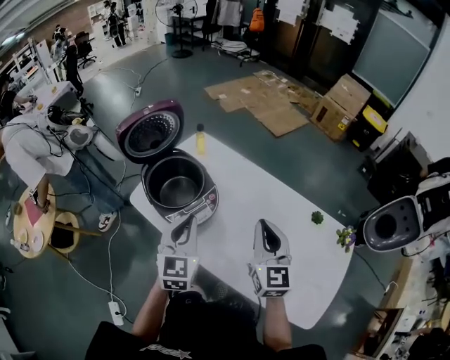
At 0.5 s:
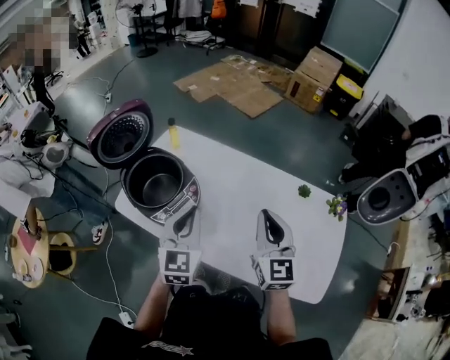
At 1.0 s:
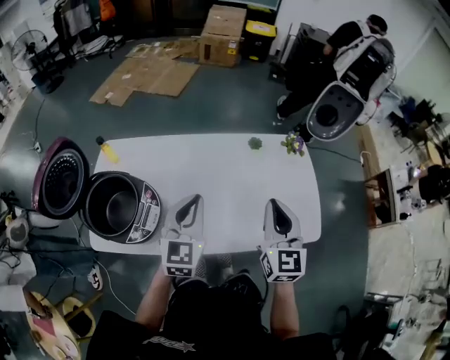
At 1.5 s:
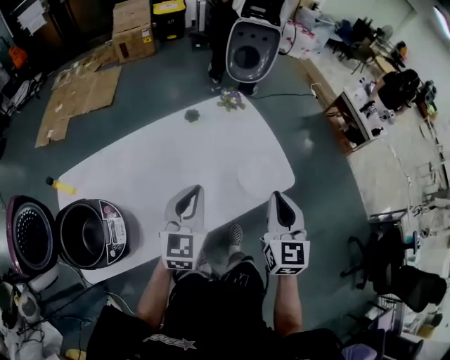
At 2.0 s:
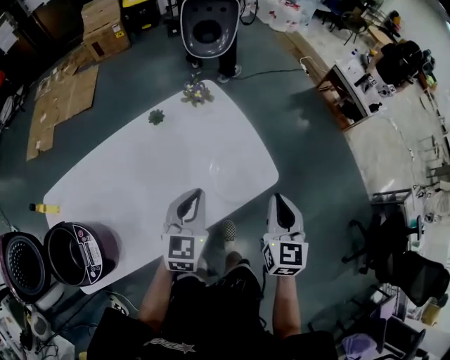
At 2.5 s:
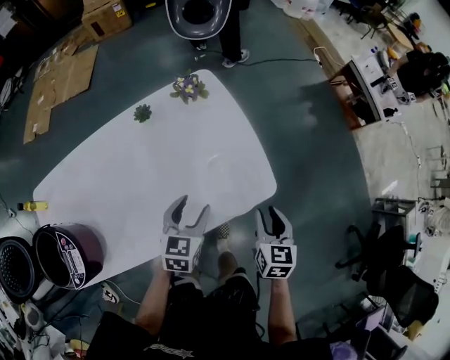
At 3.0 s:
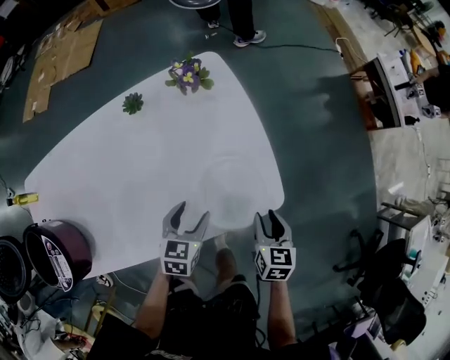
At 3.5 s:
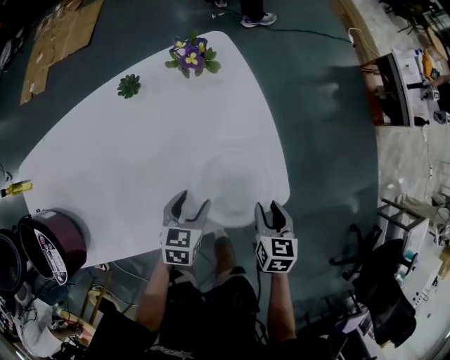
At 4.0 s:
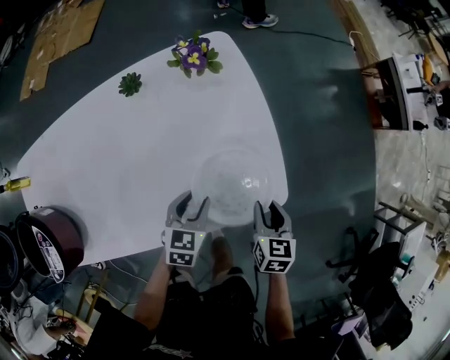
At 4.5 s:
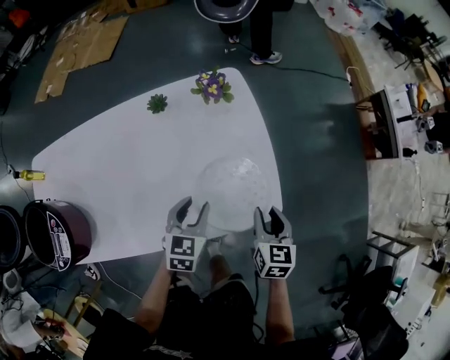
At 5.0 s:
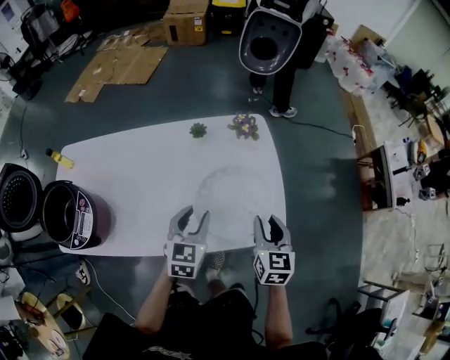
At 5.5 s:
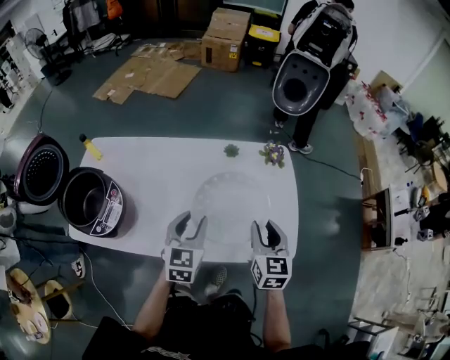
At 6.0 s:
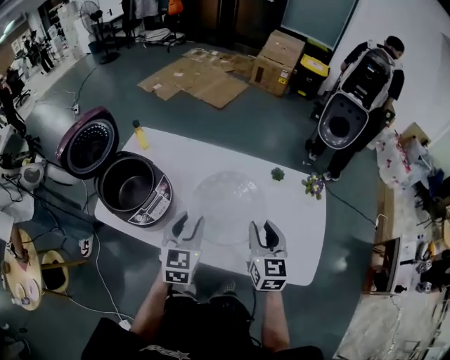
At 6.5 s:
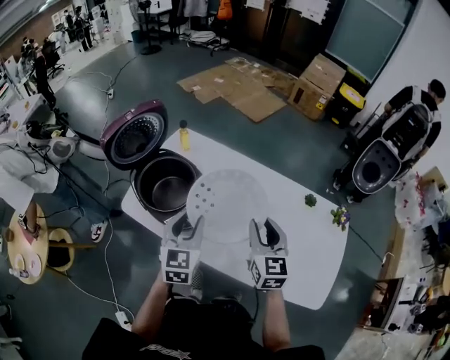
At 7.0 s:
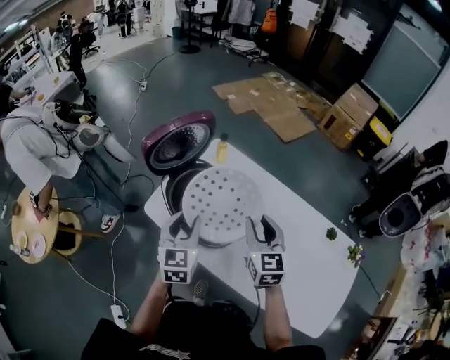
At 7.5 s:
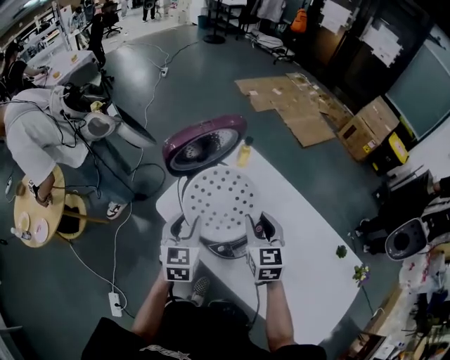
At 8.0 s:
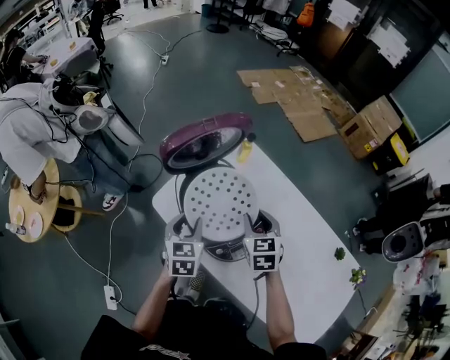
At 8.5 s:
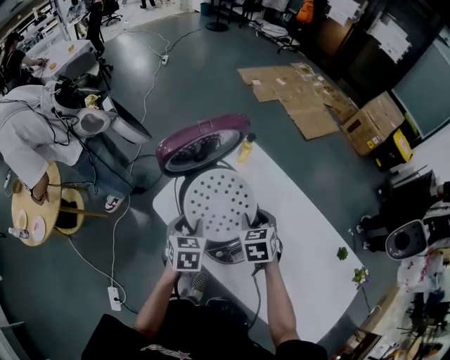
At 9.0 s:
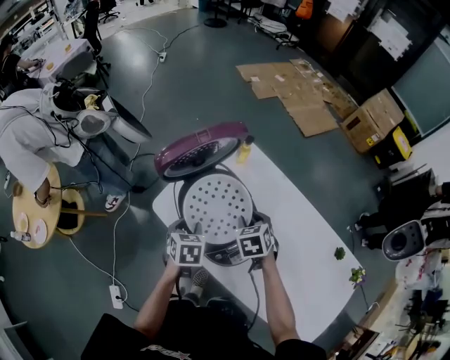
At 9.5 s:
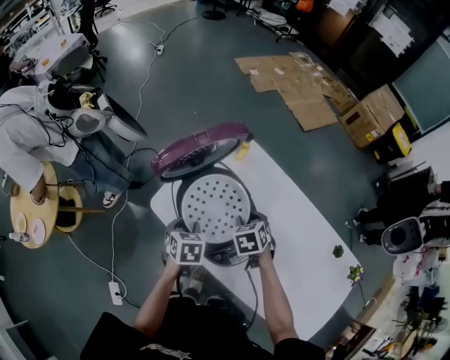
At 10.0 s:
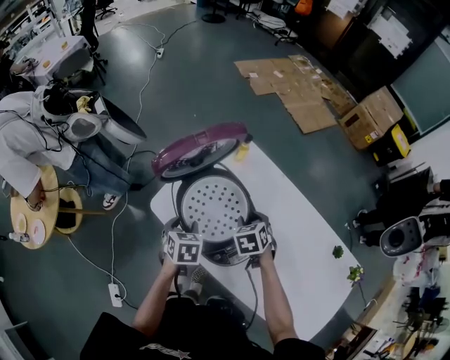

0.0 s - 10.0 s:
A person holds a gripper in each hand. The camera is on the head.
0.0 s - 2.0 s: Both grippers are carried approximately 40 cm. The left gripper turns by some 70 degrees, while the right gripper swivels some 70 degrees.
2.0 s - 4.0 s: Both grippers travel together downward, approximately 25 cm. The right gripper turns by roughly 30 degrees, and opens its fingers; the left gripper turns by some 30 degrees, and opens.
4.0 s - 6.0 s: The left gripper changes place by some 50 cm, and swivels roughly 50 degrees. Meanwhile the right gripper shifts by some 50 cm, and changes its angle by approximately 50 degrees.
6.0 s - 8.0 s: The right gripper ends up approximately 40 cm from where it was, and changes its angle by some 40 degrees; the left gripper shifts by approximately 35 cm, and rotates roughly 40 degrees.
8.0 s - 10.0 s: The right gripper travels downward by about 5 cm, and swivels roughly 20 degrees. The left gripper rotates roughly 20 degrees.

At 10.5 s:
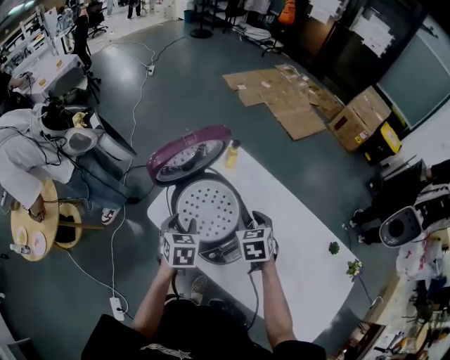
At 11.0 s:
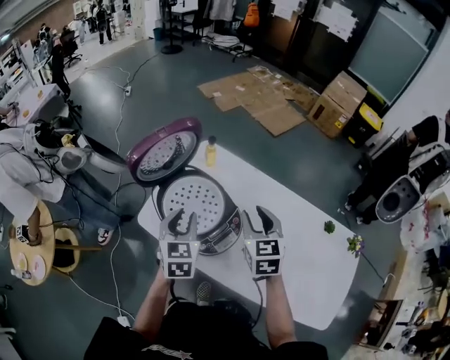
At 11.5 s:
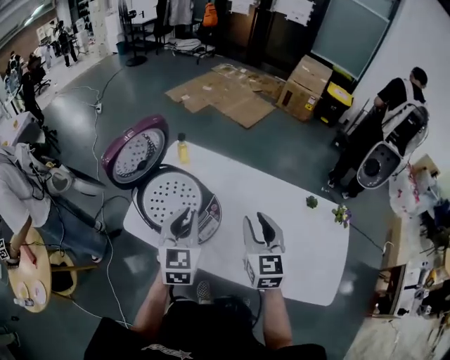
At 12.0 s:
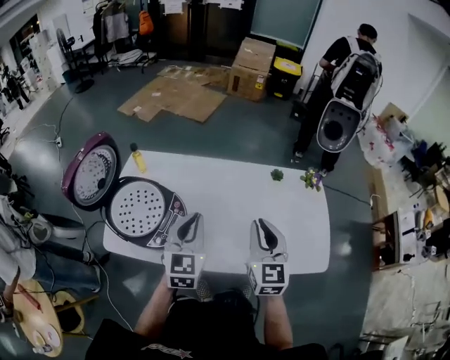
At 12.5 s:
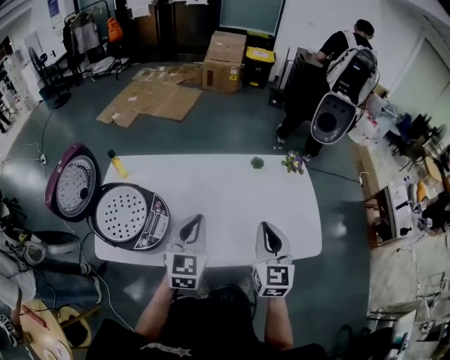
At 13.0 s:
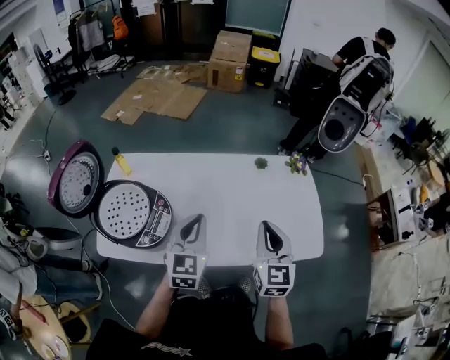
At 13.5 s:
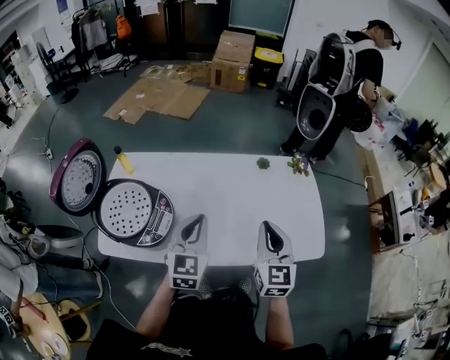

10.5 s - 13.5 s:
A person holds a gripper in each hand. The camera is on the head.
10.5 s - 12.0 s: The right gripper ends up about 35 cm from where it was, tilts its fingers about 40 degrees upward, and closes its fingers. The left gripper shifts by approximately 30 cm, tips its fingers upward by approximately 30 degrees, and closes.
12.0 s - 13.5 s: Both grippers travel together to the right, roughly 5 cm.

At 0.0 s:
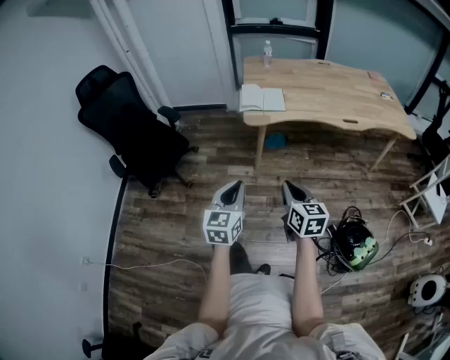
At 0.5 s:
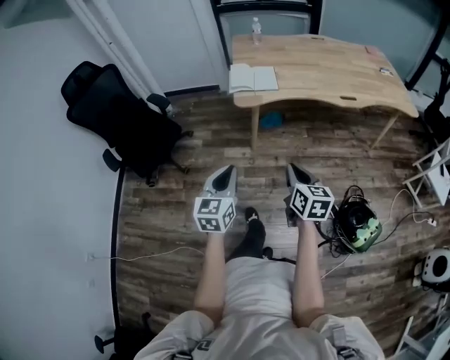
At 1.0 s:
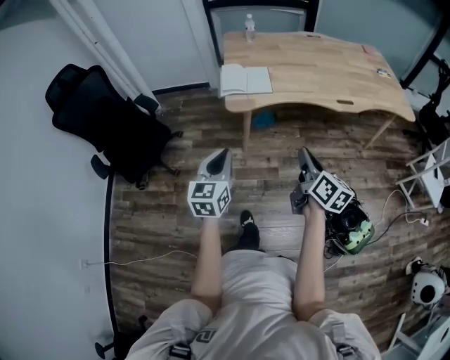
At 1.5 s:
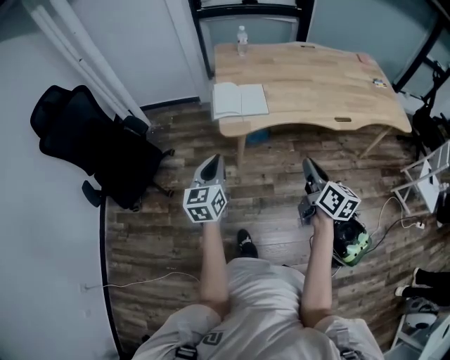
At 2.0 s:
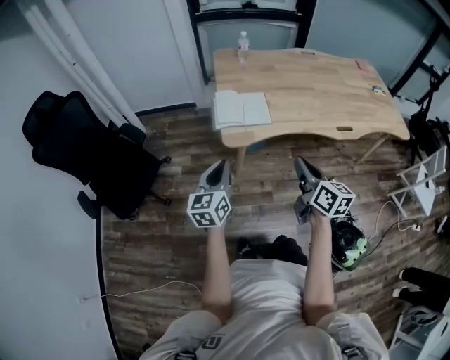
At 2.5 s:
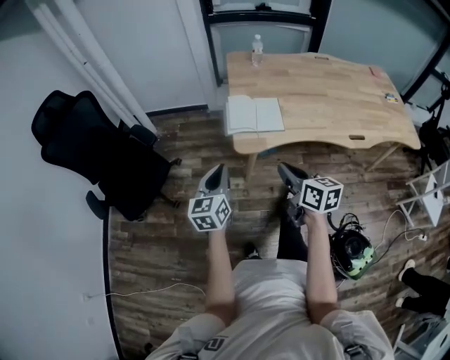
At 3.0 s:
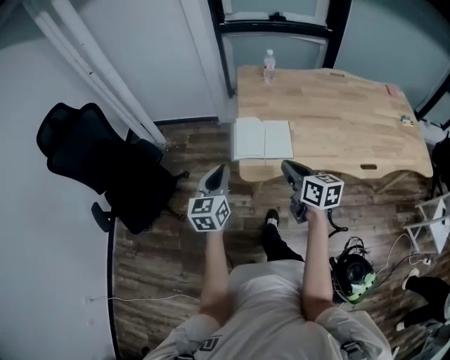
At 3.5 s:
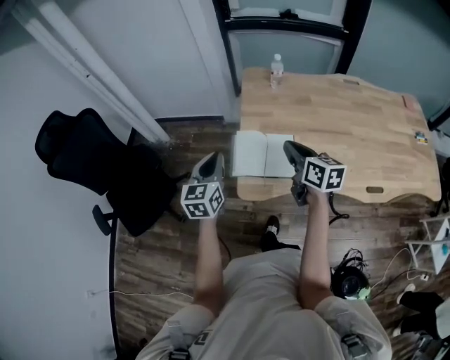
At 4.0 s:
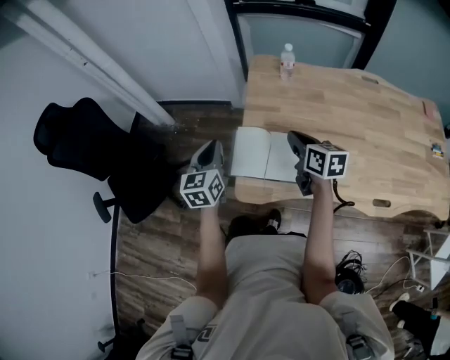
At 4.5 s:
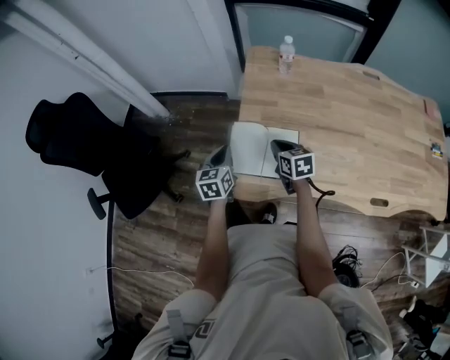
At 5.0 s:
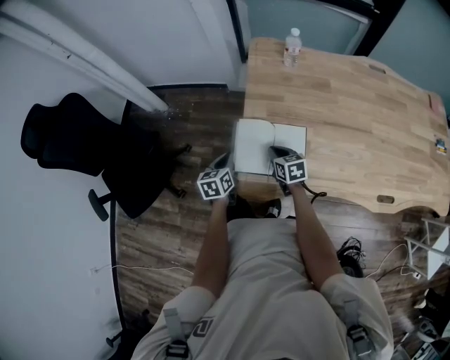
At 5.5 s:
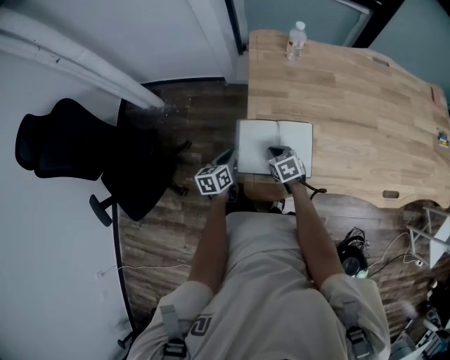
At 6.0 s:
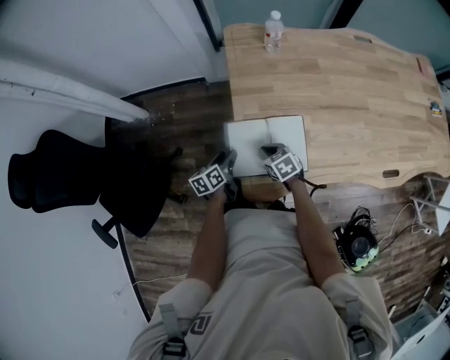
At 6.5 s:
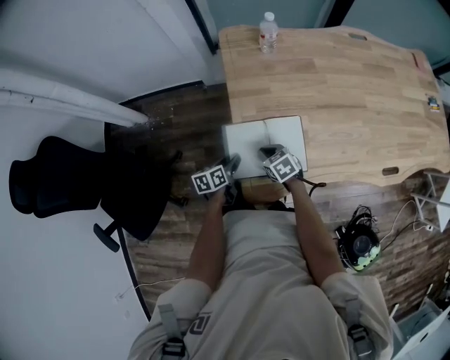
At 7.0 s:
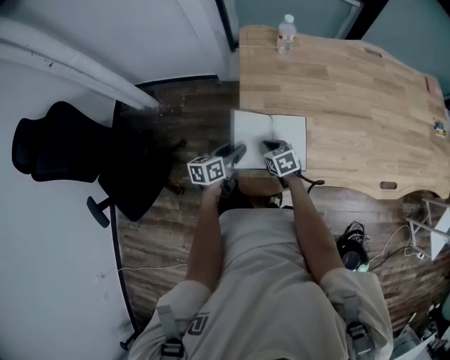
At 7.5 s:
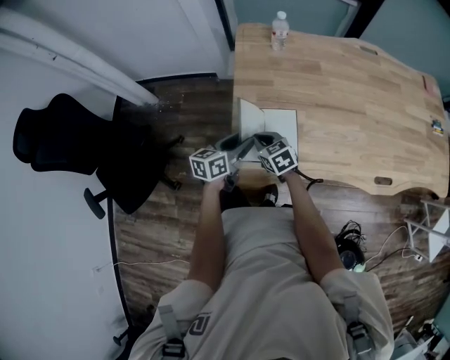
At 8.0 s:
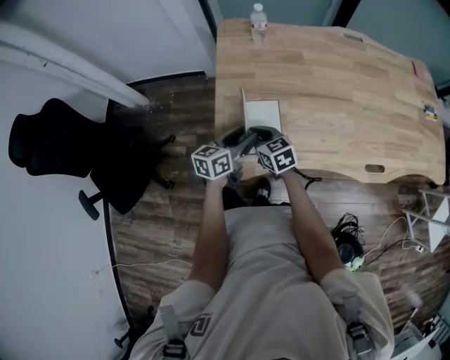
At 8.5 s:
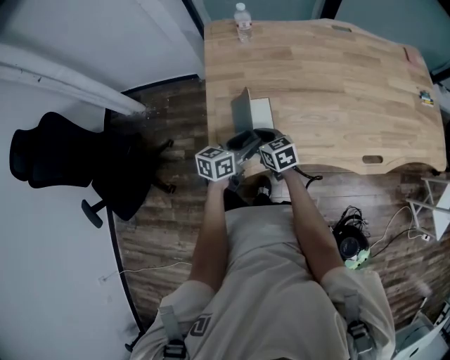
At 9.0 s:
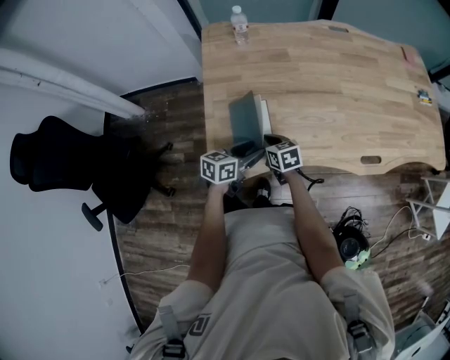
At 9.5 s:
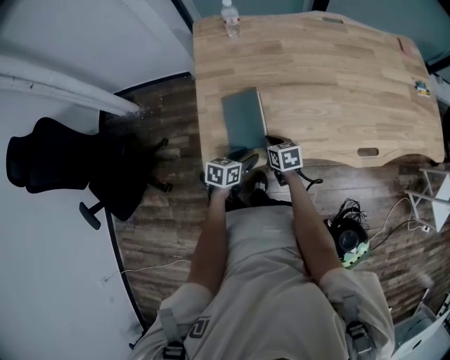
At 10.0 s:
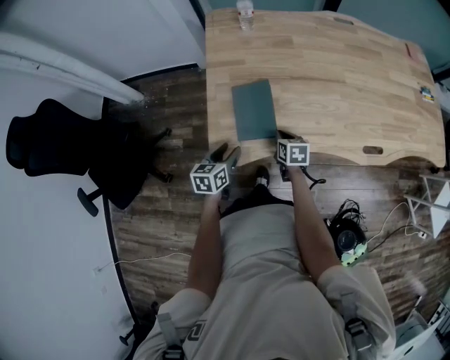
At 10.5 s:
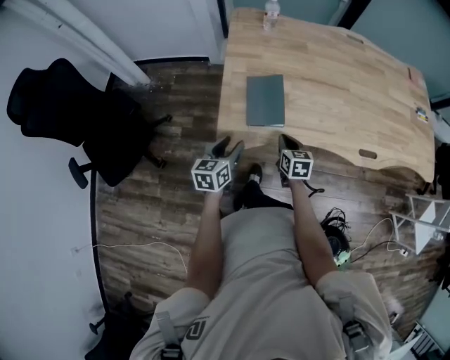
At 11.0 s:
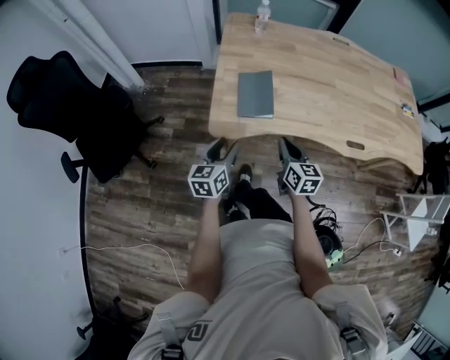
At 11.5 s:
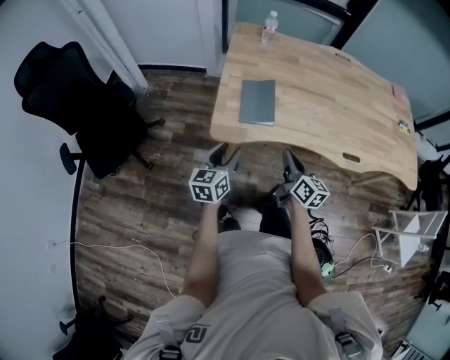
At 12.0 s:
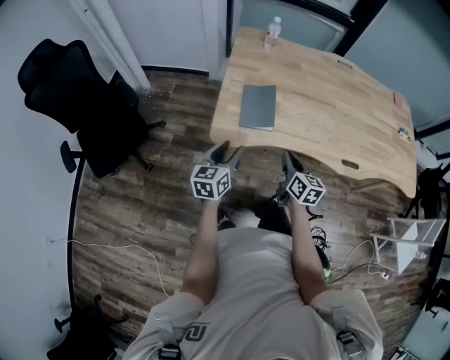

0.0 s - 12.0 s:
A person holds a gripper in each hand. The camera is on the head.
0.0 s - 2.0 s: Both grippers move forward, approximately 30 cm.
2.0 s - 4.0 s: Both grippers move forward, about 40 cm. The right gripper changes its angle by roughly 30 degrees. Meanwhile the left gripper swivels roughly 20 degrees.
4.0 s - 6.0 s: The left gripper goes about 30 cm downward, swivels some 40 degrees, and opens its fingers. Meanwhile the right gripper is displaced downward and to the left by roughly 30 cm, and swivels some 30 degrees.
6.0 s - 8.0 s: The left gripper shifts approximately 25 cm to the right and upward, and rotates some 30 degrees. The right gripper travels upward and to the right by roughly 10 cm, and rotates approximately 20 degrees.
8.0 s - 10.0 s: The right gripper travels to the right and downward by approximately 15 cm, and changes its angle by some 30 degrees. Meanwhile the left gripper heads backward and downward, covering about 10 cm, and turns by approximately 20 degrees.
10.0 s - 12.0 s: Both grippers move backward and upward, about 20 cm. The left gripper changes its angle by approximately 20 degrees. Meanwhile the right gripper swivels about 30 degrees.

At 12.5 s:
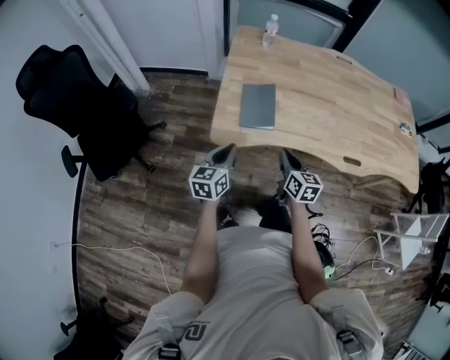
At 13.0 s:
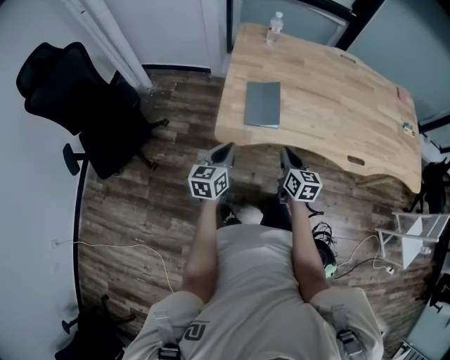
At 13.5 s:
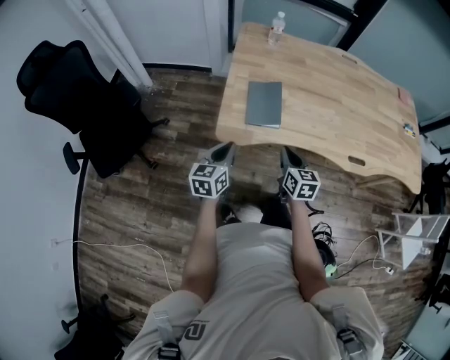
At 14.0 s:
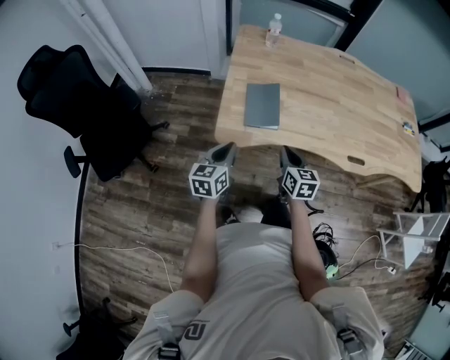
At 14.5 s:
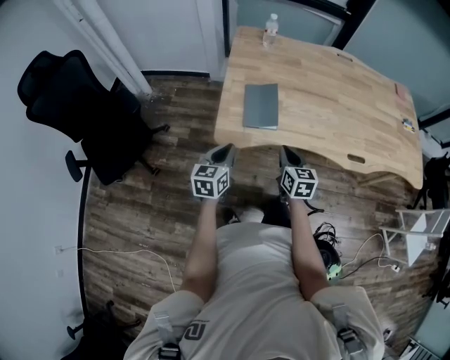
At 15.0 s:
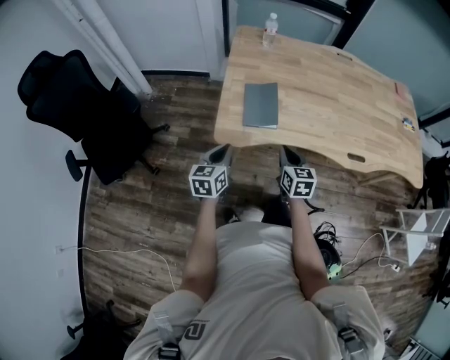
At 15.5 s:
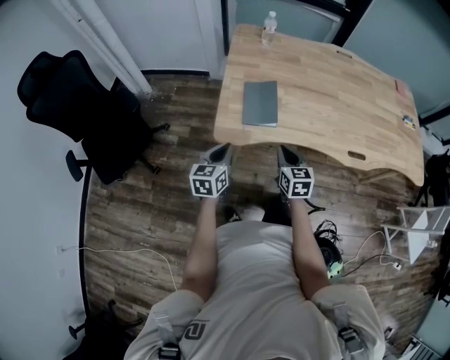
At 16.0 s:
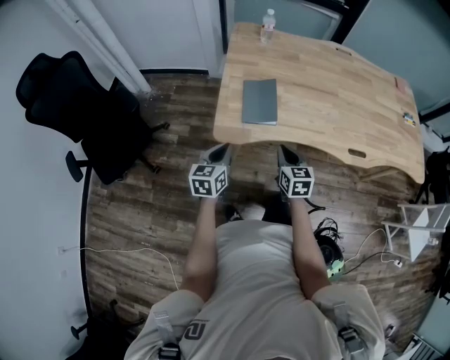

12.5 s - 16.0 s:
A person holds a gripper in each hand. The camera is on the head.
12.5 s - 16.0 s: The grippers stay close to where they were, moving slightly.
